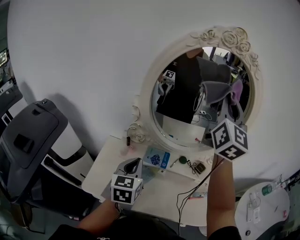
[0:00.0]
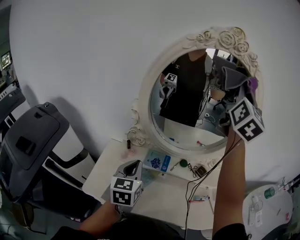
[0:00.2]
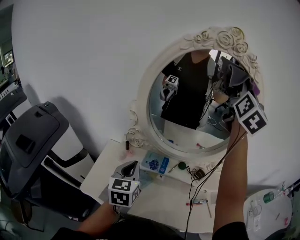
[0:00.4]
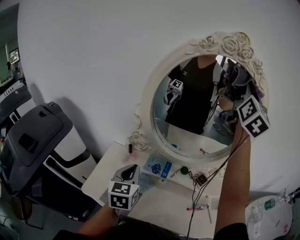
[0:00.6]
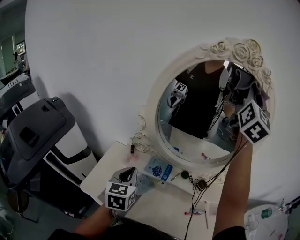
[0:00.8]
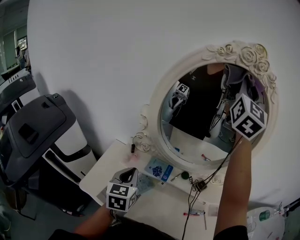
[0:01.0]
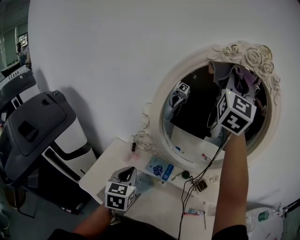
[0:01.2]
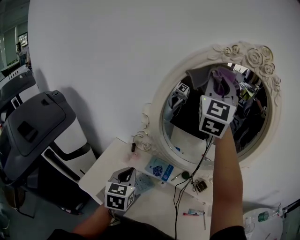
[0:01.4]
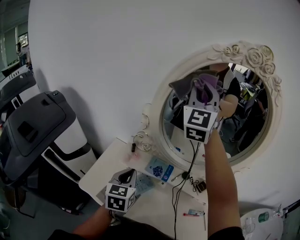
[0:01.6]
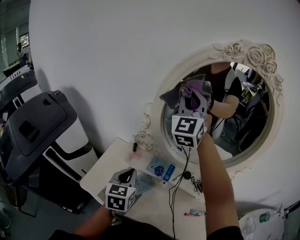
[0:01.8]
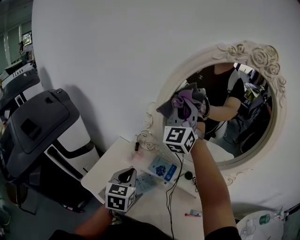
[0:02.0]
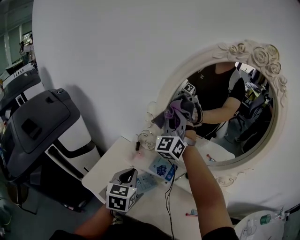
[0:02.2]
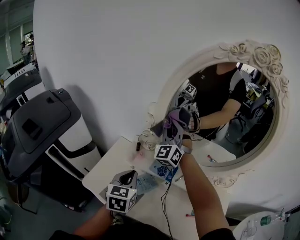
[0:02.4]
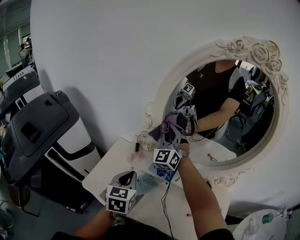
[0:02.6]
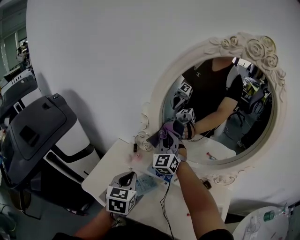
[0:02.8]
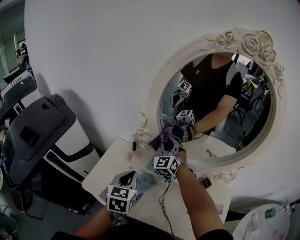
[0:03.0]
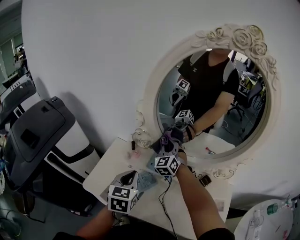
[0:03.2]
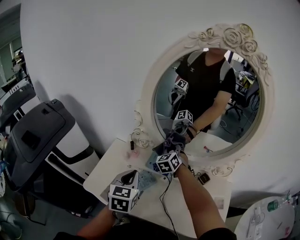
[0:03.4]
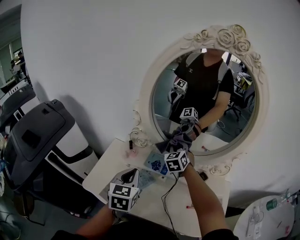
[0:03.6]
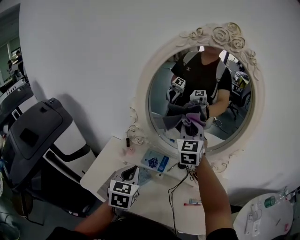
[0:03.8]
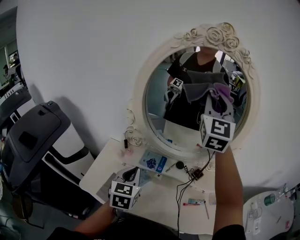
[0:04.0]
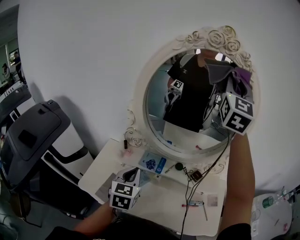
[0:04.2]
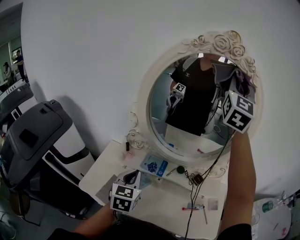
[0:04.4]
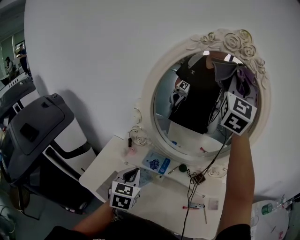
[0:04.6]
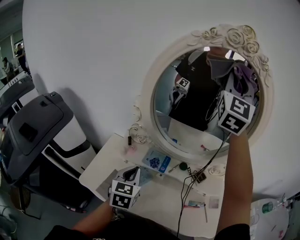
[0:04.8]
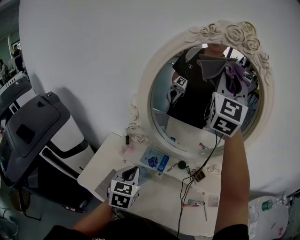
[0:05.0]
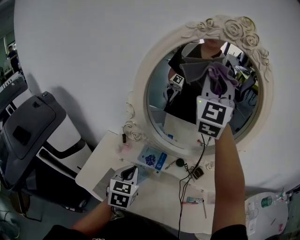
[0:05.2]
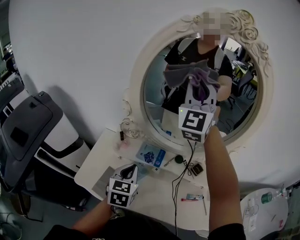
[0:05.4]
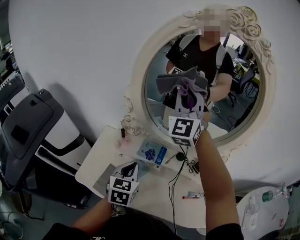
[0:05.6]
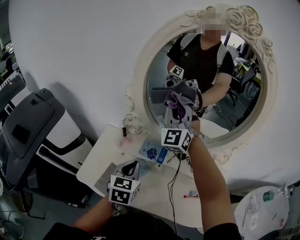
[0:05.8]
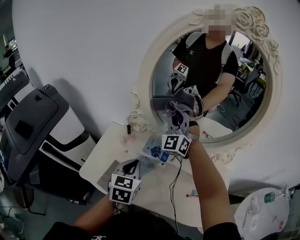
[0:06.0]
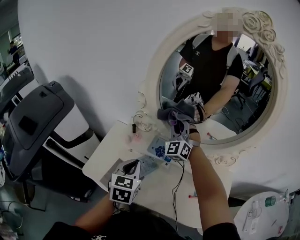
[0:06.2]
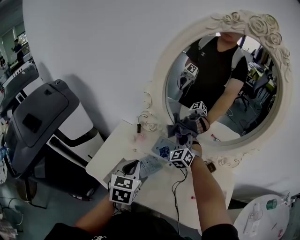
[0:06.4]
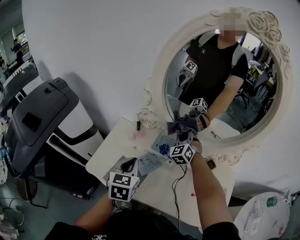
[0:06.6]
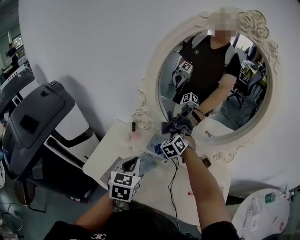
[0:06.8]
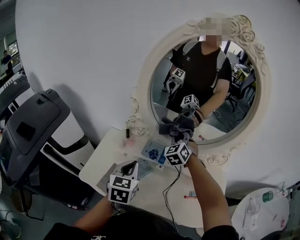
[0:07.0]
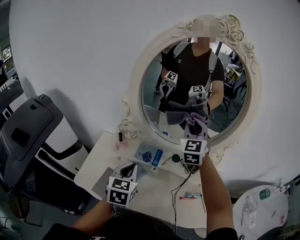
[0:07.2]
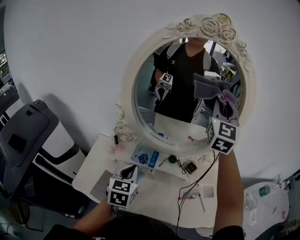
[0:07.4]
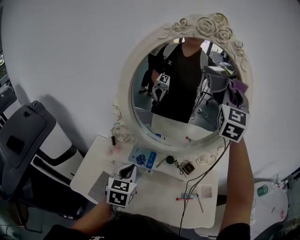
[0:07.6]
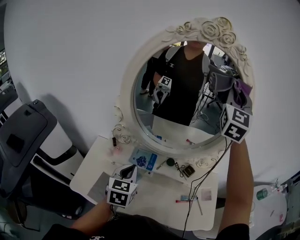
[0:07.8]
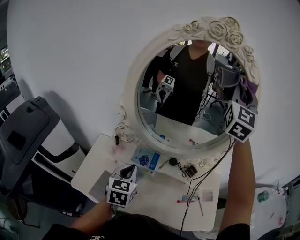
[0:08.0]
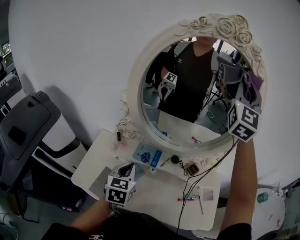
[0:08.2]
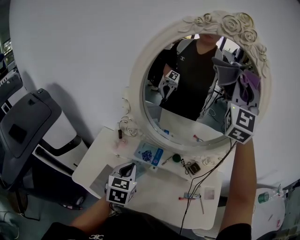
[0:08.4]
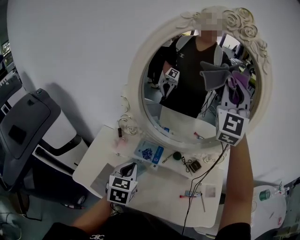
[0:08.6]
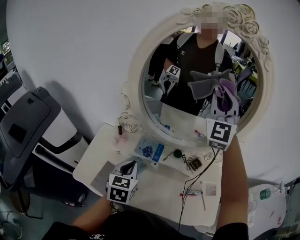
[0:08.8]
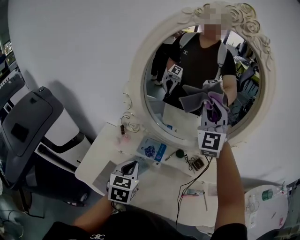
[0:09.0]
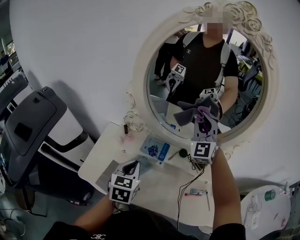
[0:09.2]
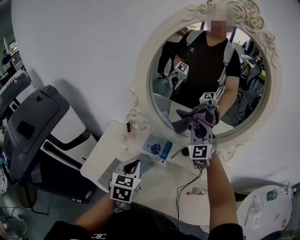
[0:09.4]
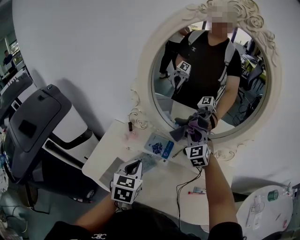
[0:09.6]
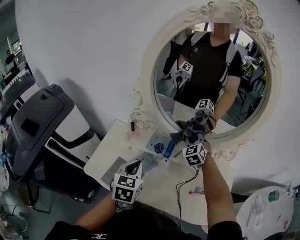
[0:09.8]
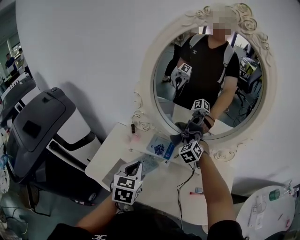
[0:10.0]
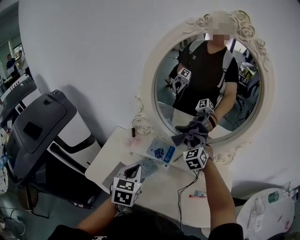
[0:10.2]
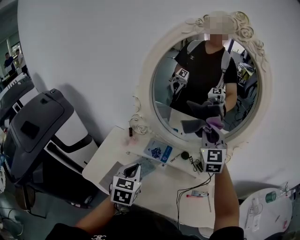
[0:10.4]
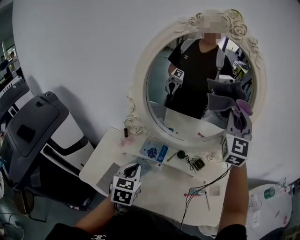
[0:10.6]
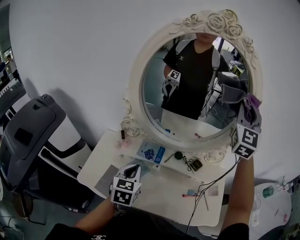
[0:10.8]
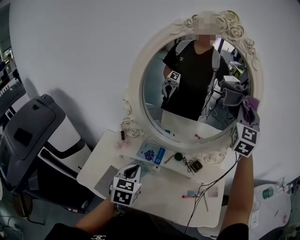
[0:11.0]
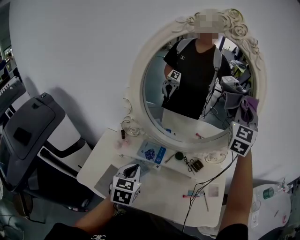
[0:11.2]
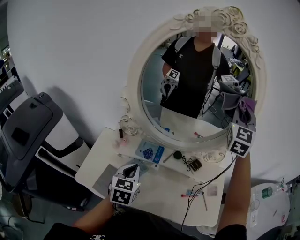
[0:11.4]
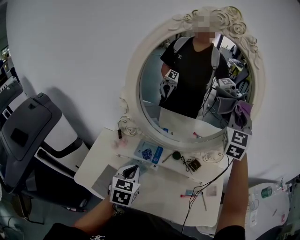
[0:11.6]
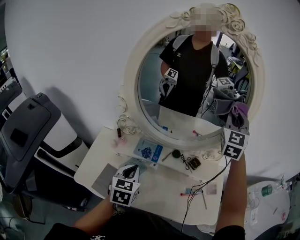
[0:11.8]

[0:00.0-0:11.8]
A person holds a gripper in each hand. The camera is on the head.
0:00.0 to 0:01.4: The right gripper moves to the left, forward and upward, approximately 15 cm, and swivels some 30 degrees.
0:01.4 to 0:03.0: The right gripper is displaced downward by approximately 40 cm, and changes its angle by roughly 30 degrees.
0:03.0 to 0:04.4: The left gripper travels to the right by roughly 5 cm; the right gripper shifts some 50 cm upward and to the right, and tips its fingers upward by approximately 30 degrees.
0:04.4 to 0:06.0: The right gripper heads downward and to the left, covering roughly 40 cm, and turns by about 40 degrees.
0:06.0 to 0:07.4: The right gripper moves to the right and upward, about 30 cm, and changes its angle by about 40 degrees.
0:07.4 to 0:08.8: The right gripper travels to the left by about 5 cm, travels upward and back again, some 10 cm each way, and changes its angle by about 20 degrees.
0:08.8 to 0:10.4: The right gripper shifts roughly 15 cm downward, and turns by some 30 degrees.
0:10.4 to 0:11.8: The right gripper goes some 15 cm to the right and upward, and rotates roughly 20 degrees.

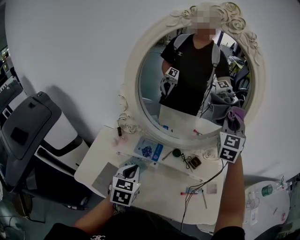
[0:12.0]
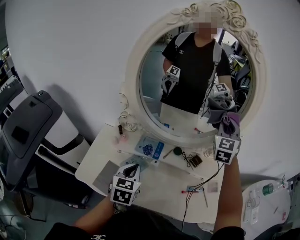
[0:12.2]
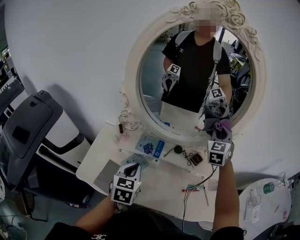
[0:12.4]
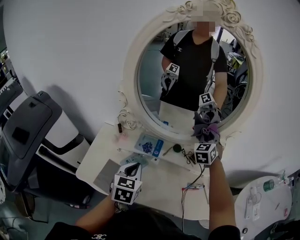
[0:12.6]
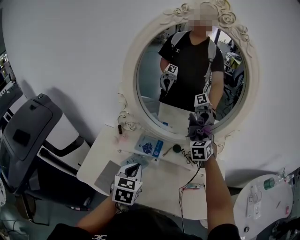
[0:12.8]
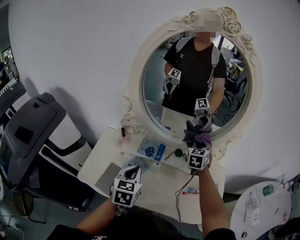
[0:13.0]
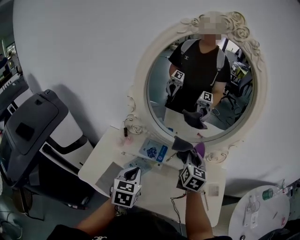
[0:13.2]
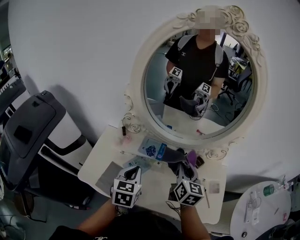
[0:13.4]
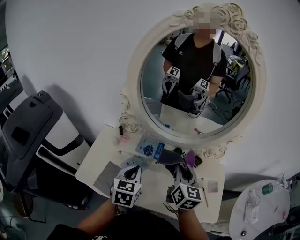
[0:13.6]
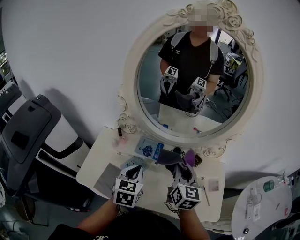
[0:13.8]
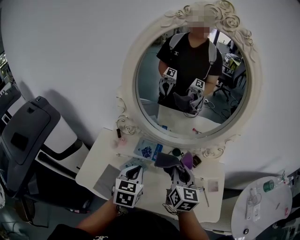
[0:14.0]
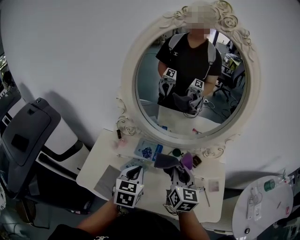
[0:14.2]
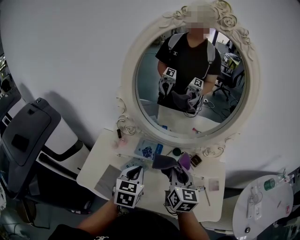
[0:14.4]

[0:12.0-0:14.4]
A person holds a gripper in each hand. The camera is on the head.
0:12.0 to 0:13.2: The right gripper is displaced downward, backward and to the left by roughly 25 cm, and turns by roughly 40 degrees.
0:13.2 to 0:14.4: The right gripper travels backward by some 10 cm.

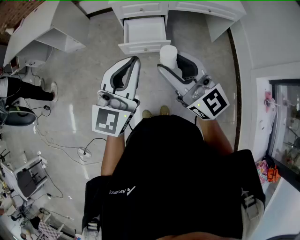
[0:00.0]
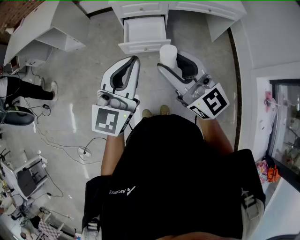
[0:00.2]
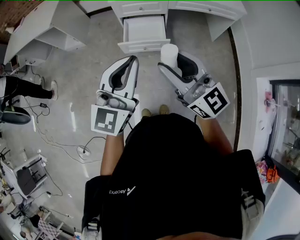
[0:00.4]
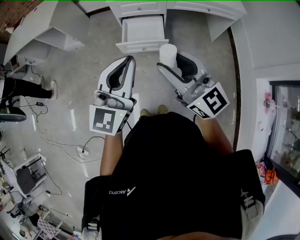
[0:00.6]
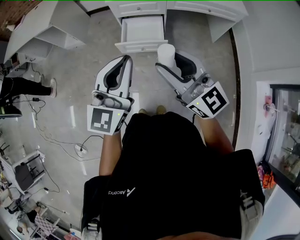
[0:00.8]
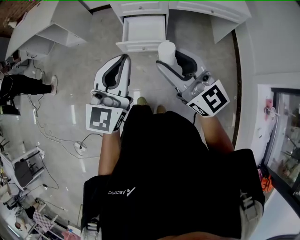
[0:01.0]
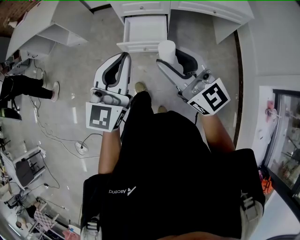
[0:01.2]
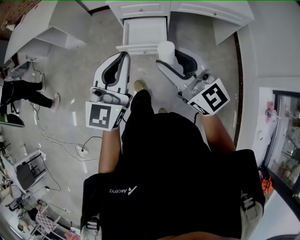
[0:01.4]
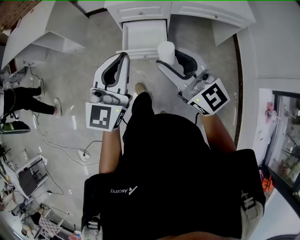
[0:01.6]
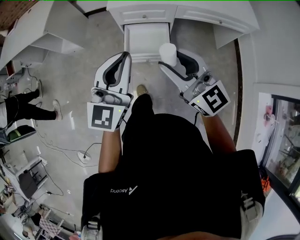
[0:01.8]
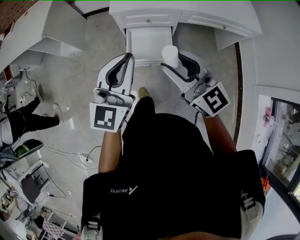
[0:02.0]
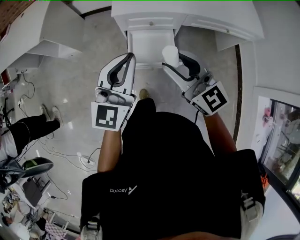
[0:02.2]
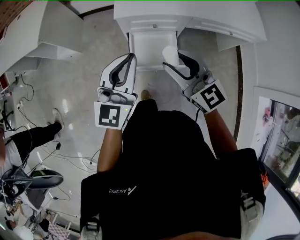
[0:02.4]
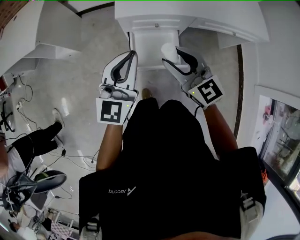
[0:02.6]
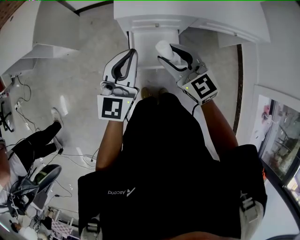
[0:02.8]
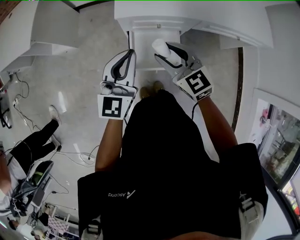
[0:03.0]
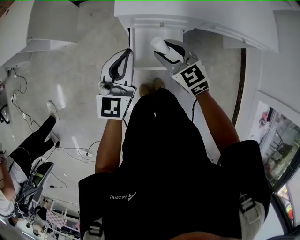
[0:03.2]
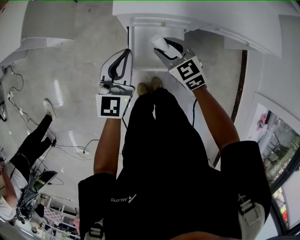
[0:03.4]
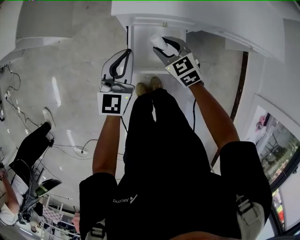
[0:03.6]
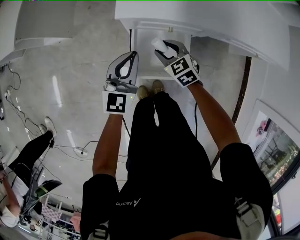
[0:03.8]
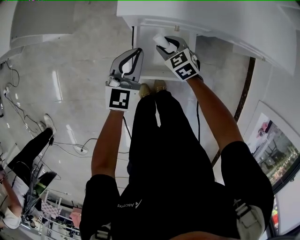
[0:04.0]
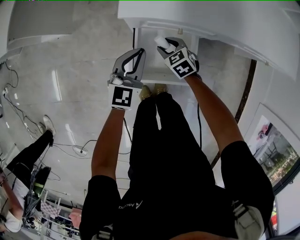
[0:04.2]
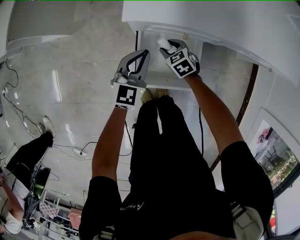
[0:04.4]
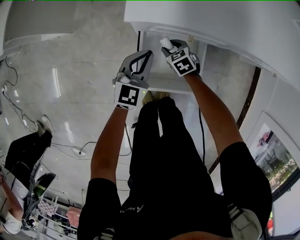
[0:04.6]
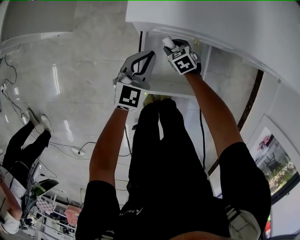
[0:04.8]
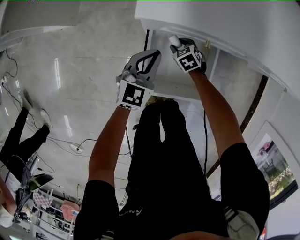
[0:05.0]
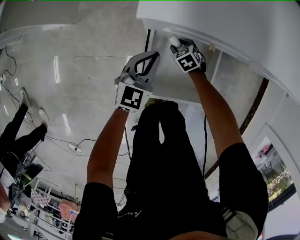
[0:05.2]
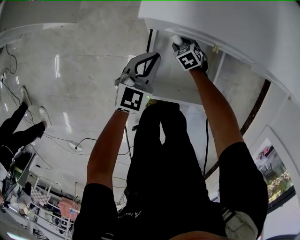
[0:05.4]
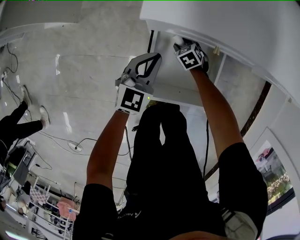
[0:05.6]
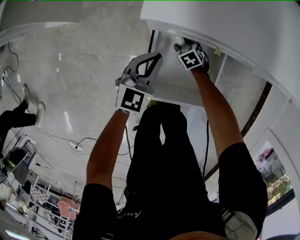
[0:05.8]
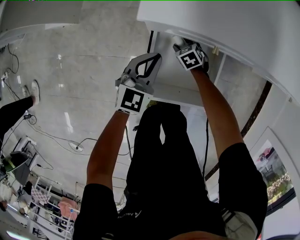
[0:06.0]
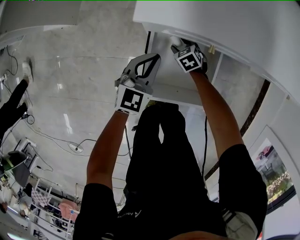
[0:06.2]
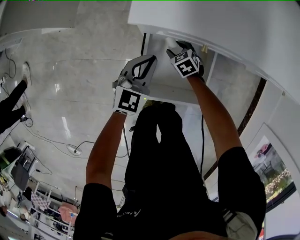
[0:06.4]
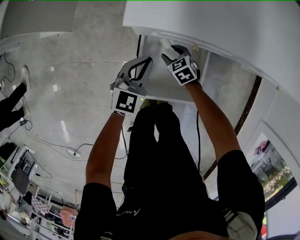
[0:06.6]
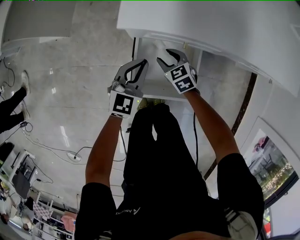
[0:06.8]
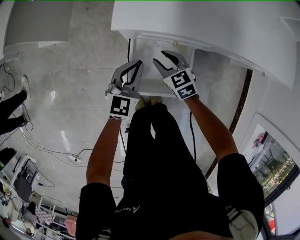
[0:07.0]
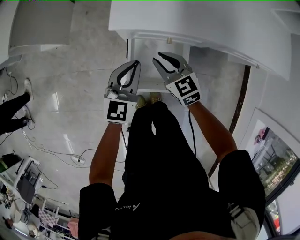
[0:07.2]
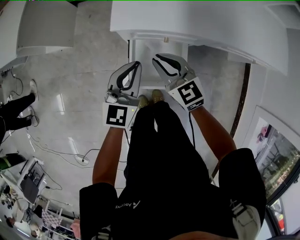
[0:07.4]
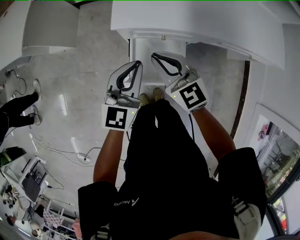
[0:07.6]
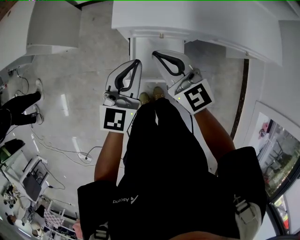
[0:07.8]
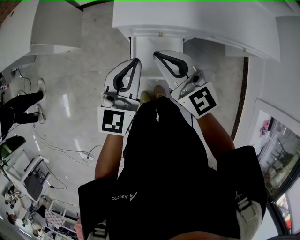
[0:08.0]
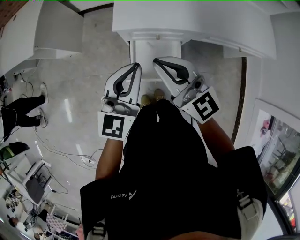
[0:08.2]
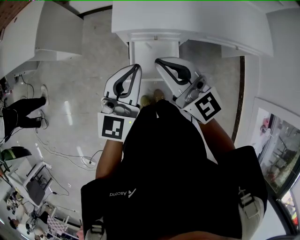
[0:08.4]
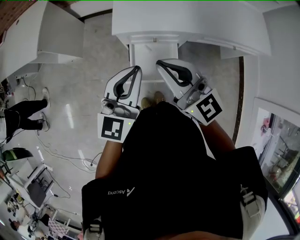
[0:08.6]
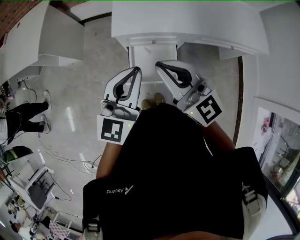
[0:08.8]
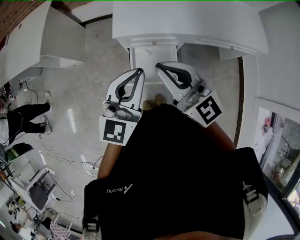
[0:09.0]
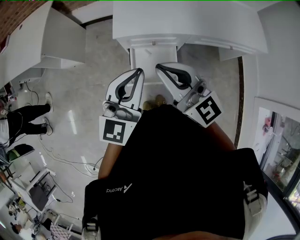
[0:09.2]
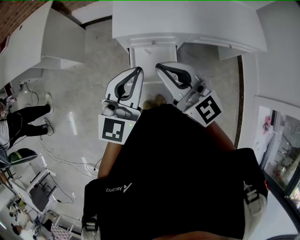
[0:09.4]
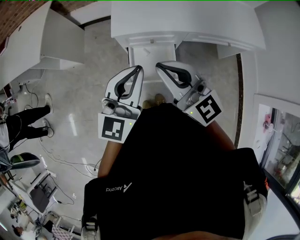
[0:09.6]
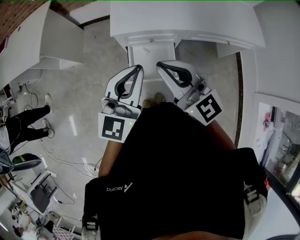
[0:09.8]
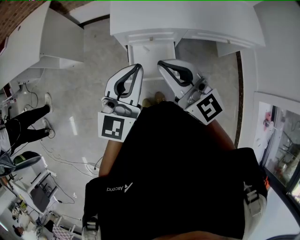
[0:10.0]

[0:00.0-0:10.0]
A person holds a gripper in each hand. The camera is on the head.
0:00.0 to 0:01.4: The two grippers go some 10 cm forward.
0:01.4 to 0:02.8: Both grippers travel together forward, roughly 35 cm. The right gripper changes its angle by roughly 30 degrees.
0:02.8 to 0:04.2: The grippers both shift downward and forward by approximately 40 cm. The right gripper angles its fingers downward, by approximately 40 degrees.
0:04.2 to 0:05.8: The right gripper is displaced downward by about 20 cm. Meanwhile the left gripper is displaced downward by roughly 15 cm.
0:05.8 to 0:07.2: The left gripper moves upward, about 20 cm. Meanwhile the right gripper moves upward, about 35 cm, tips its fingers upward by about 30 degrees, and closes its fingers.
0:07.2 to 0:08.6: The right gripper is displaced upward by approximately 40 cm, points its fingers approximately 40 degrees further upward, and closes; the left gripper shifts some 35 cm upward and backward.
0:08.6 to 0:10.0: The grippers move only a little.
